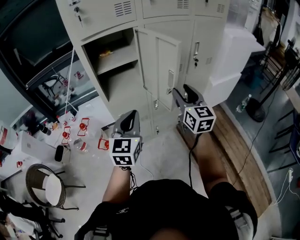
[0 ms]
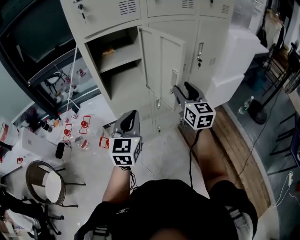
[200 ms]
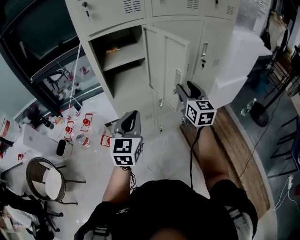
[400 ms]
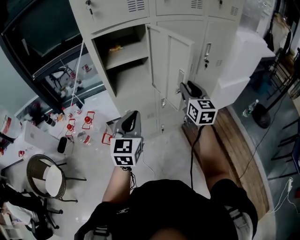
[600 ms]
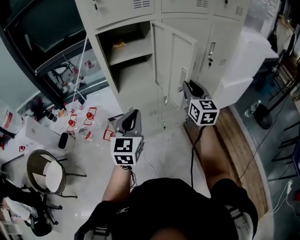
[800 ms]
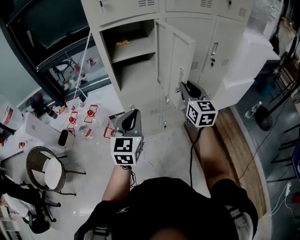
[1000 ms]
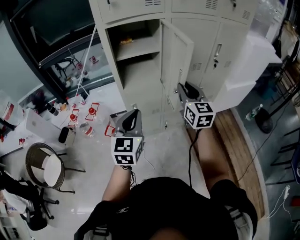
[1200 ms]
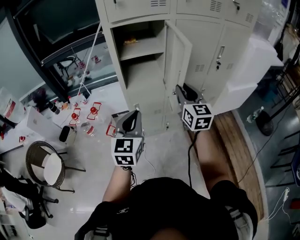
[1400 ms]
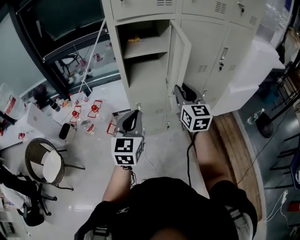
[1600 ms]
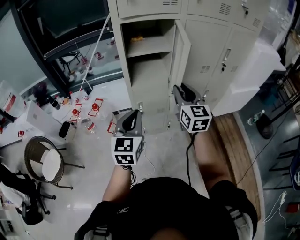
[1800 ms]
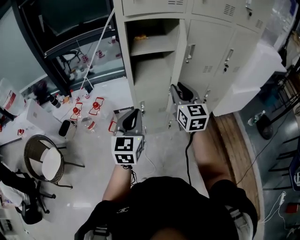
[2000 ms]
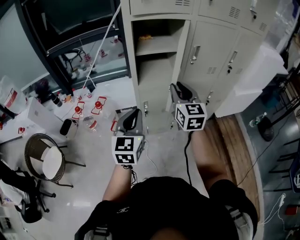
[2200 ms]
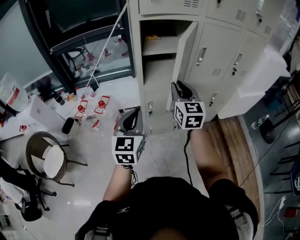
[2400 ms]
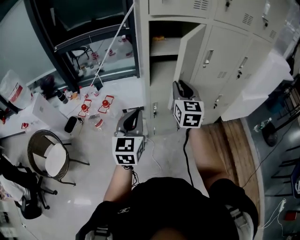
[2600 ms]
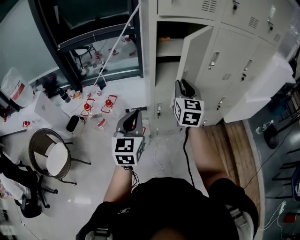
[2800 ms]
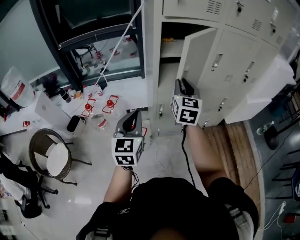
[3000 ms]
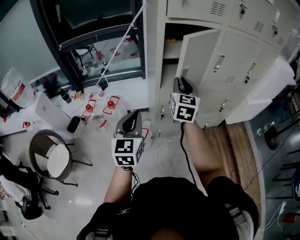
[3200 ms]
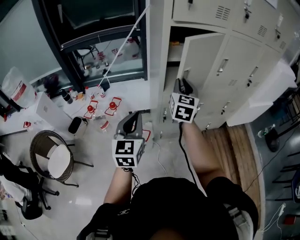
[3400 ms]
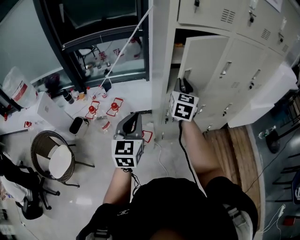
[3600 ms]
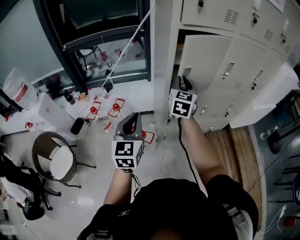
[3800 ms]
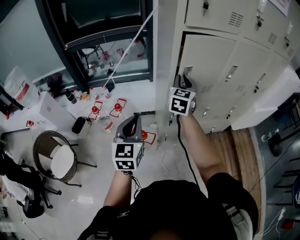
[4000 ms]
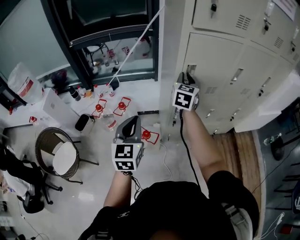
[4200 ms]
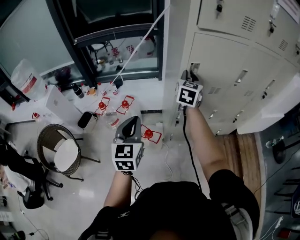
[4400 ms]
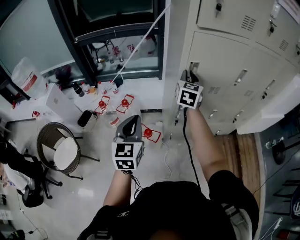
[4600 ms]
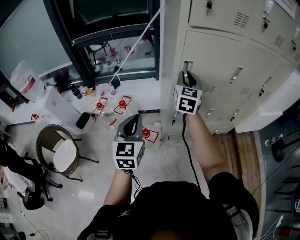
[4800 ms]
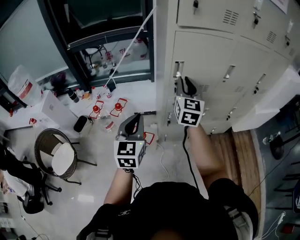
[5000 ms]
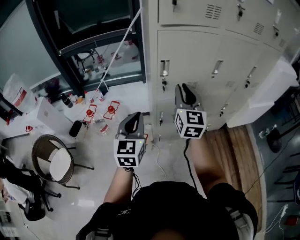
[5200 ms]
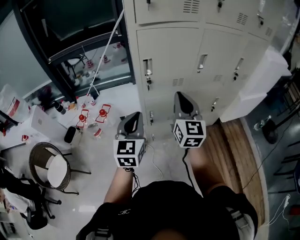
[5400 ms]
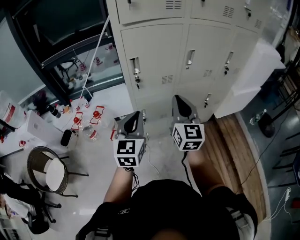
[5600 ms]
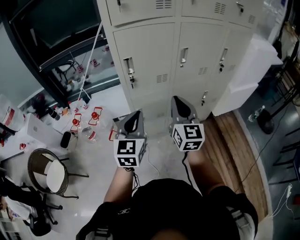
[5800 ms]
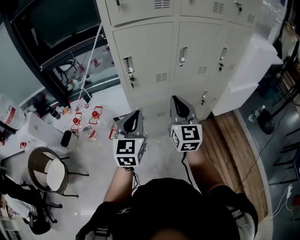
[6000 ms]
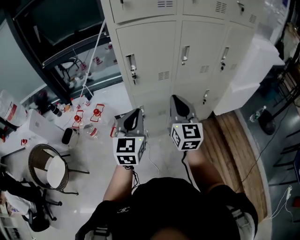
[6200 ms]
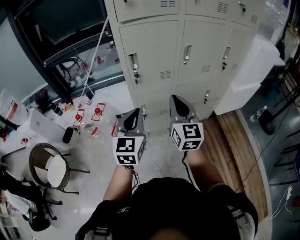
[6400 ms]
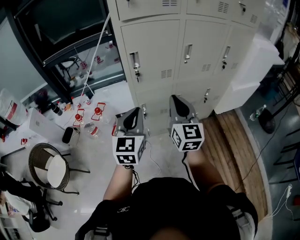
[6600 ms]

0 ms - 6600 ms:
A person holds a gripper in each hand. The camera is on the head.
0 ms - 1600 ms: The two grippers go about 10 cm to the left.
1600 ms - 3200 ms: The right gripper heads to the left and forward, covering approximately 20 cm, while the left gripper heads to the left, covering roughly 15 cm.
3200 ms - 5000 ms: The left gripper goes to the left and returns, about 10 cm each way; the right gripper reaches some 10 cm forward, then returns.
5000 ms - 6600 ms: The left gripper goes some 15 cm to the right. Meanwhile the right gripper goes roughly 20 cm backward and to the right.

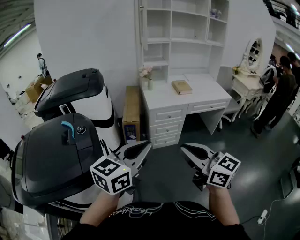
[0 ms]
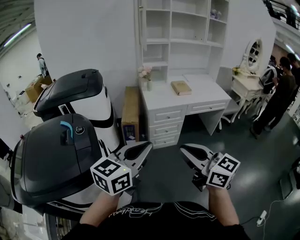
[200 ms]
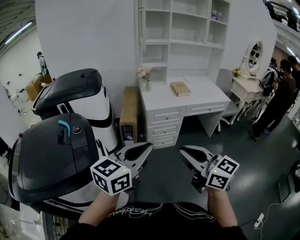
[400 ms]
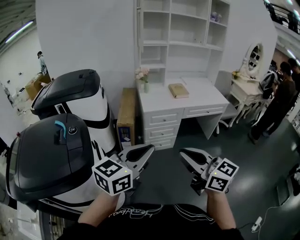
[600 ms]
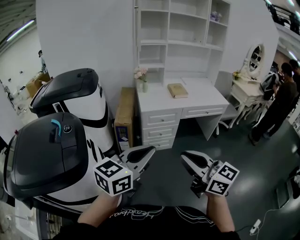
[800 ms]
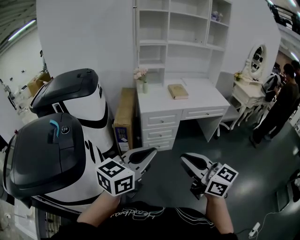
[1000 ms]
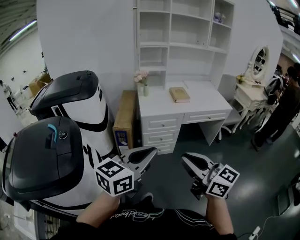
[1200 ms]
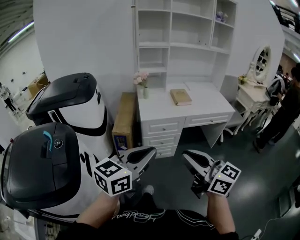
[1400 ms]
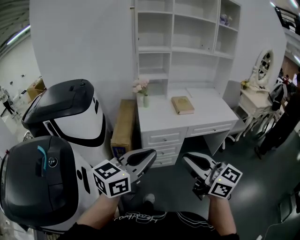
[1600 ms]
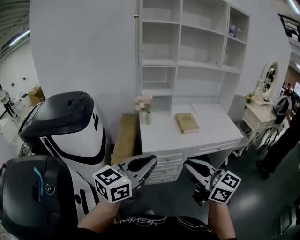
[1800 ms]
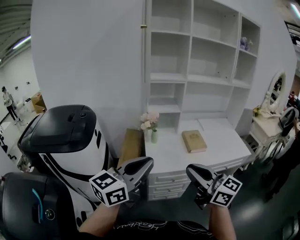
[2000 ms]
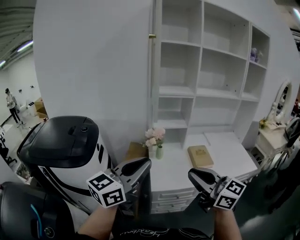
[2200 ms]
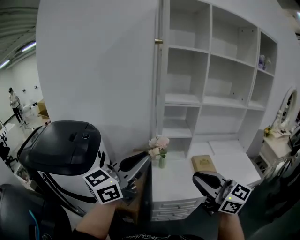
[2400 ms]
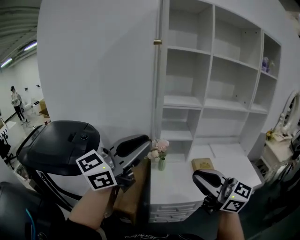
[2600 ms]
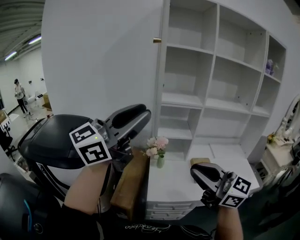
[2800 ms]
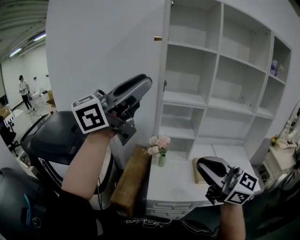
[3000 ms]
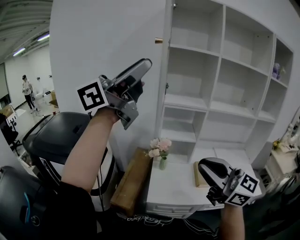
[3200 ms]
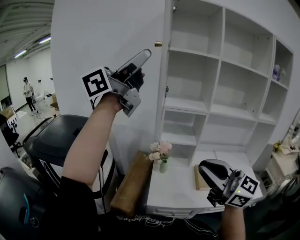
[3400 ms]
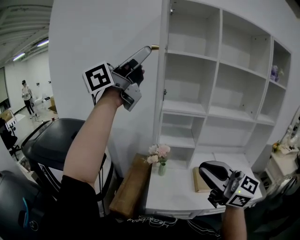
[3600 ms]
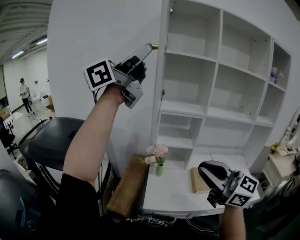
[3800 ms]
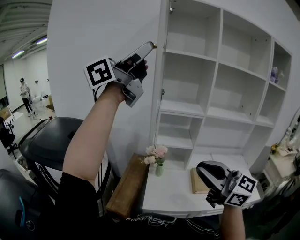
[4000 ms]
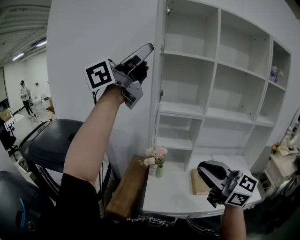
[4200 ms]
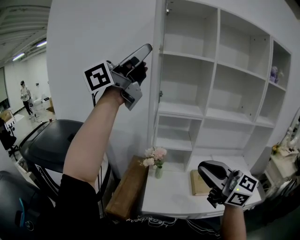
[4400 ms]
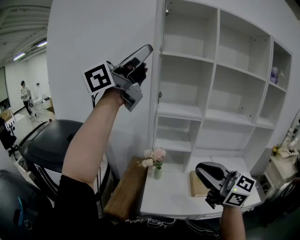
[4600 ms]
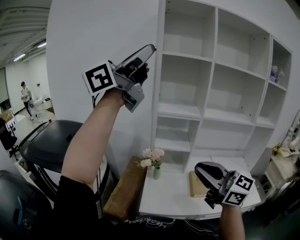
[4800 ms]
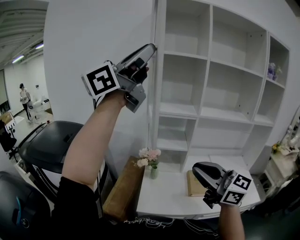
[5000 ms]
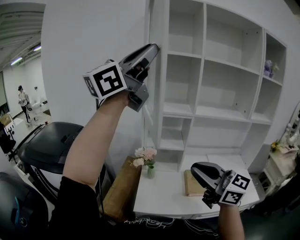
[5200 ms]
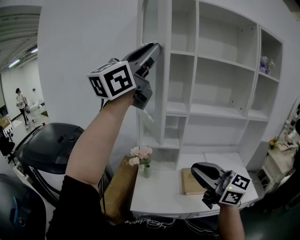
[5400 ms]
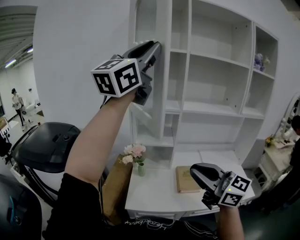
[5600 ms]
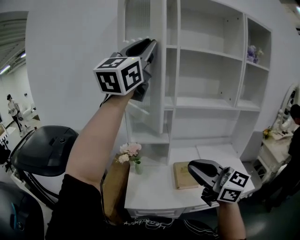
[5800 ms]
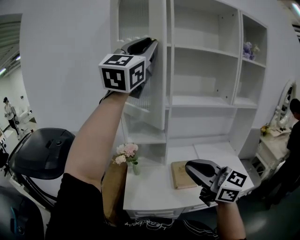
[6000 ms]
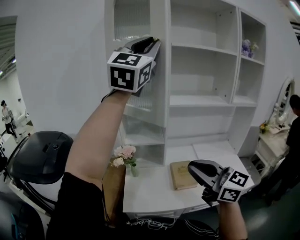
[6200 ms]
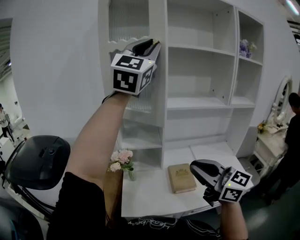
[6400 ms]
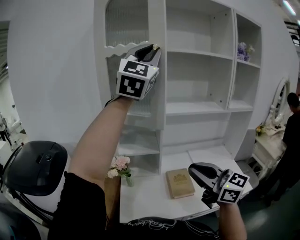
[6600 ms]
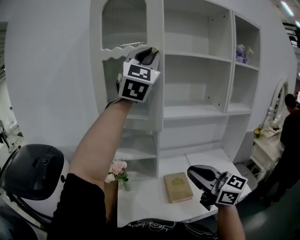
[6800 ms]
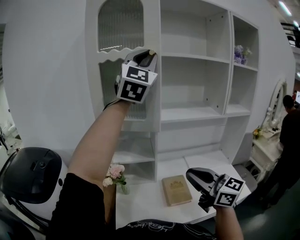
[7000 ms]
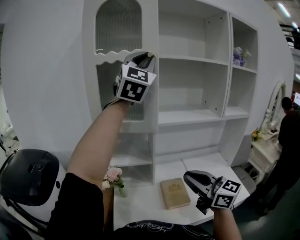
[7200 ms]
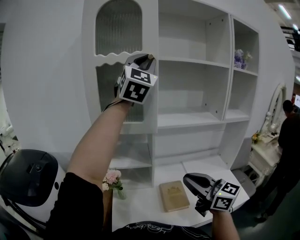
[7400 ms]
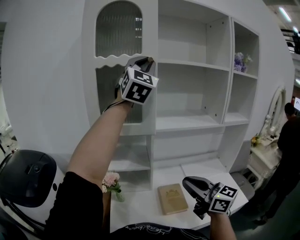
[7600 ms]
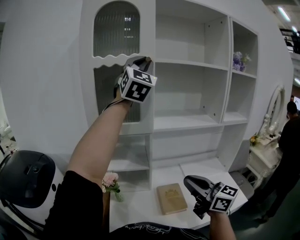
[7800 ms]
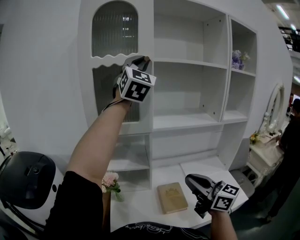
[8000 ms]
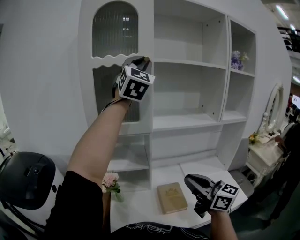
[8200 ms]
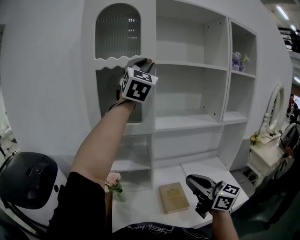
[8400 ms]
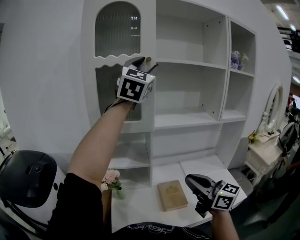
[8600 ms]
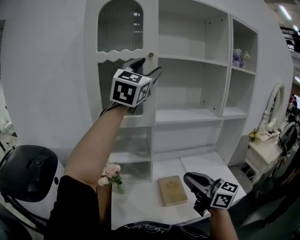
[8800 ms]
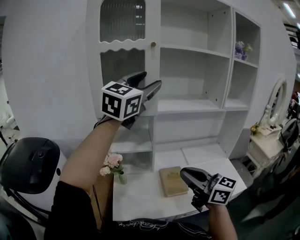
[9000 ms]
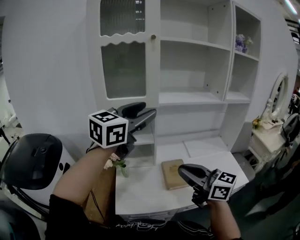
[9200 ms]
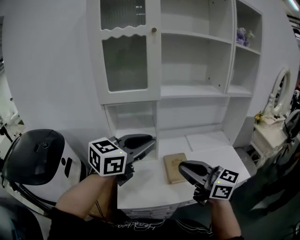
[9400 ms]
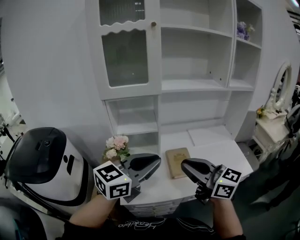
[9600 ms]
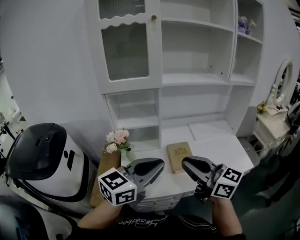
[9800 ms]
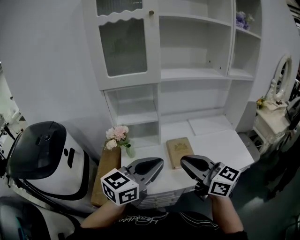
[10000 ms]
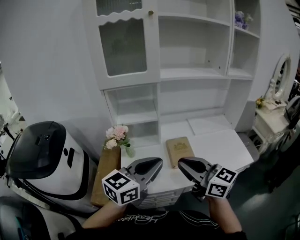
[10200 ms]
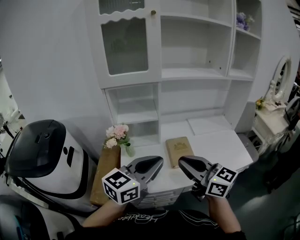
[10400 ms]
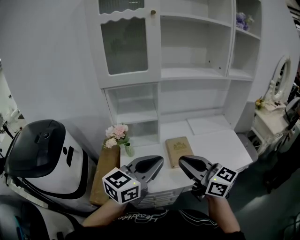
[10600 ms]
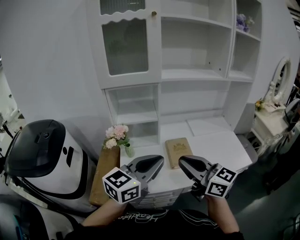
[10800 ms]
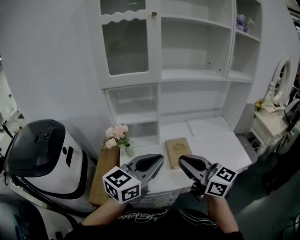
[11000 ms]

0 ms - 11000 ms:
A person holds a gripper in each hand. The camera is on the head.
0 ms - 1600 ms: The grippers both shift forward and to the right by roughly 25 cm.
1600 ms - 3200 ms: The pair of grippers is taken forward, some 40 cm. The left gripper heads upward, covering approximately 40 cm, tips its fingers upward by about 30 degrees, and opens. The right gripper swivels roughly 20 degrees.
3200 ms - 4800 ms: The right gripper travels forward by roughly 5 cm, while the left gripper is displaced upward by about 5 cm.
4800 ms - 6200 ms: The right gripper shifts about 15 cm to the right, while the left gripper is displaced to the right and forward by some 25 cm, and rotates around the line of its fingers by roughly 40 degrees, clockwise from behind.
6200 ms - 7800 ms: Both grippers travel together forward and to the right, some 15 cm.
7800 ms - 9400 ms: The left gripper heads downward and backward, covering some 40 cm, swivels roughly 70 degrees, and opens and closes again. Meanwhile the right gripper travels backward and to the left by approximately 10 cm.
9400 ms - 11000 ms: The right gripper changes place by some 5 cm. The left gripper is displaced downward and backward by some 10 cm.

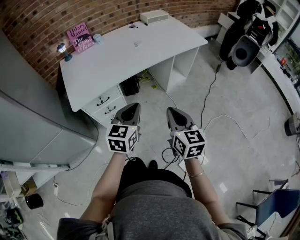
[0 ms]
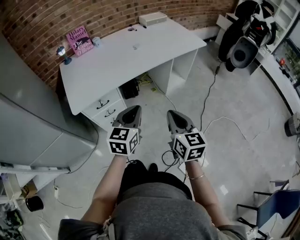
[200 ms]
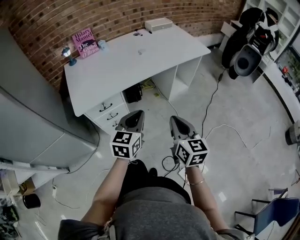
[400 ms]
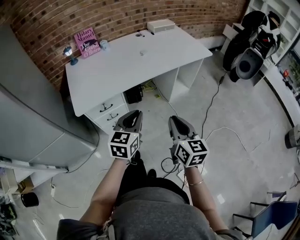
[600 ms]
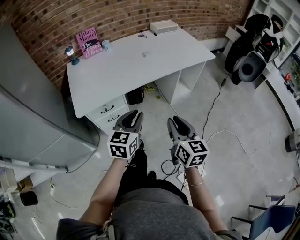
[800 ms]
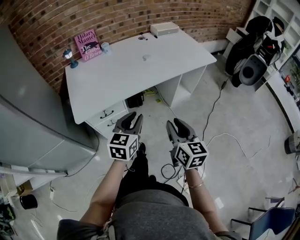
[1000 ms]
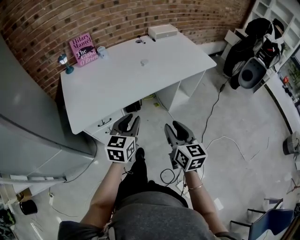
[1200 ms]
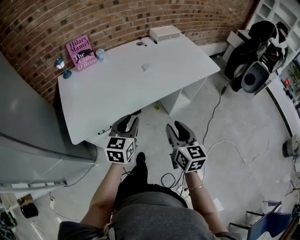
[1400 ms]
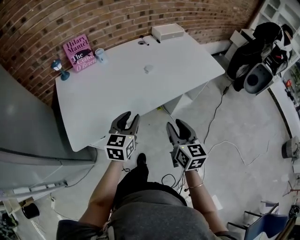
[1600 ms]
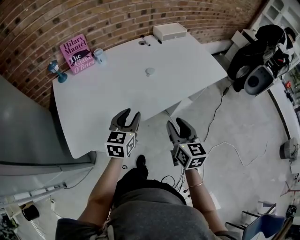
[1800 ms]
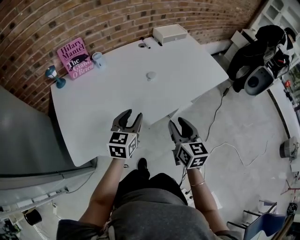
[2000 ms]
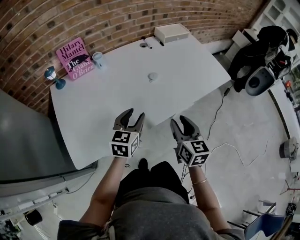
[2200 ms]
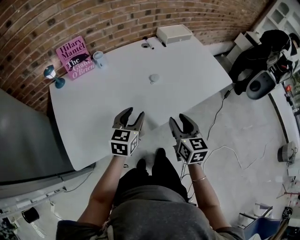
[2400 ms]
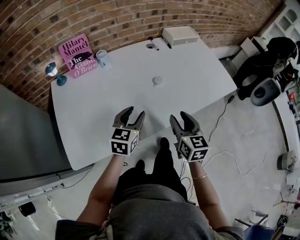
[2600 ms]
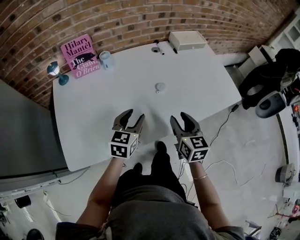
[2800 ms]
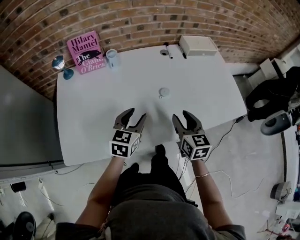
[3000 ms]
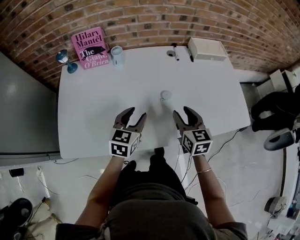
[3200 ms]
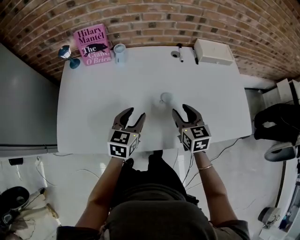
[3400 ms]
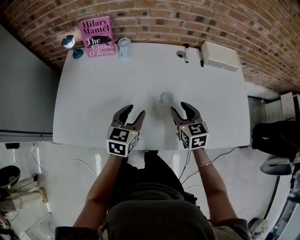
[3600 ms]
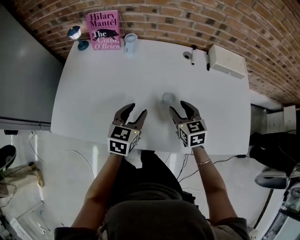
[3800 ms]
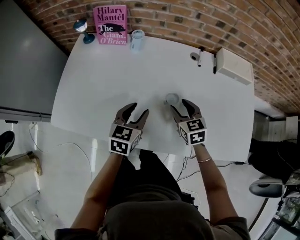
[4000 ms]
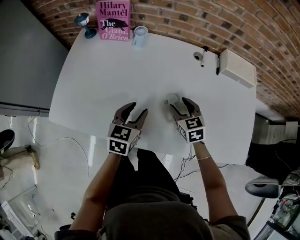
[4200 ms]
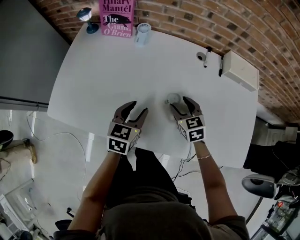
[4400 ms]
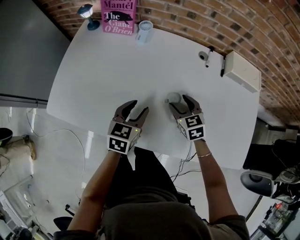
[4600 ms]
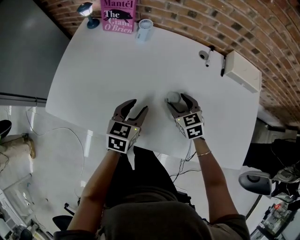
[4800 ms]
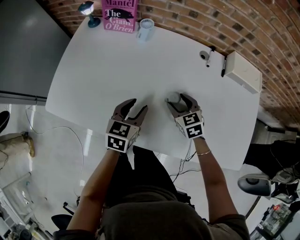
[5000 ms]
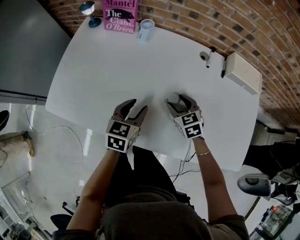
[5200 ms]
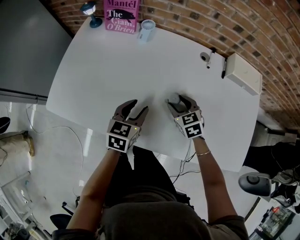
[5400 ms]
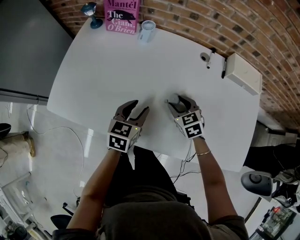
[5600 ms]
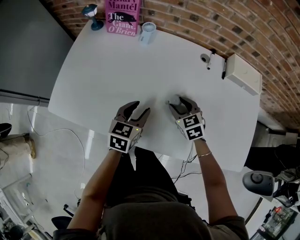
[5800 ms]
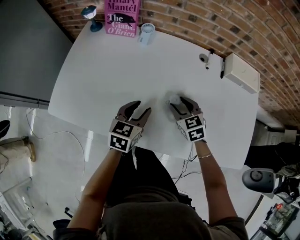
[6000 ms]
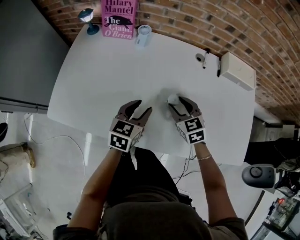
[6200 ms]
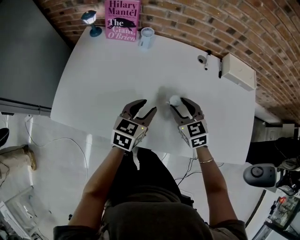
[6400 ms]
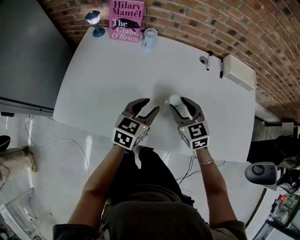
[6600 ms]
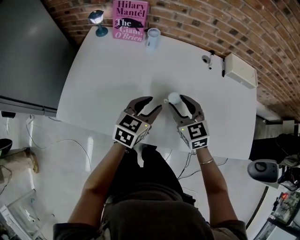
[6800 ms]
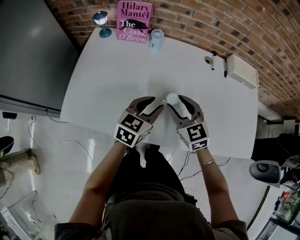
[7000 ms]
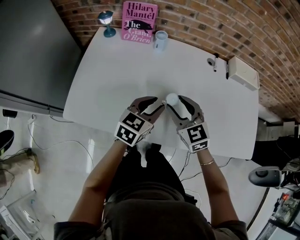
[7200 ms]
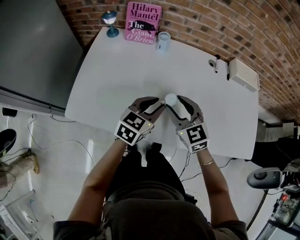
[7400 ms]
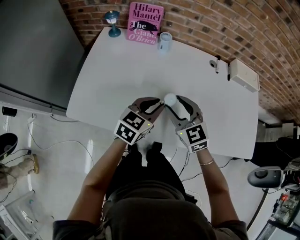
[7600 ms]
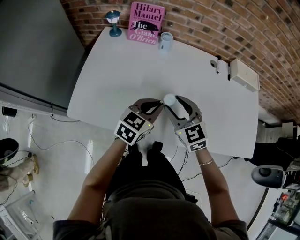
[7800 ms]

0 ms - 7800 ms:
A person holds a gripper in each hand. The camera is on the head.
0 ms - 1600 ms: Both grippers travel together forward, approximately 25 cm. The right gripper opens up, while the left gripper opens.
1600 ms - 3200 ms: Both grippers move forward, some 25 cm. The right gripper rotates some 30 degrees.
3200 ms - 4600 ms: The right gripper is displaced downward by roughly 10 cm, and changes its angle by about 40 degrees. Meanwhile the left gripper shifts by roughly 5 cm, and changes its angle by roughly 20 degrees.
4600 ms - 6200 ms: The grippers make only small movements.
6200 ms - 7800 ms: The right gripper is displaced to the left, upward and backward by roughly 20 cm; the left gripper goes roughly 5 cm to the left, and closes up.
